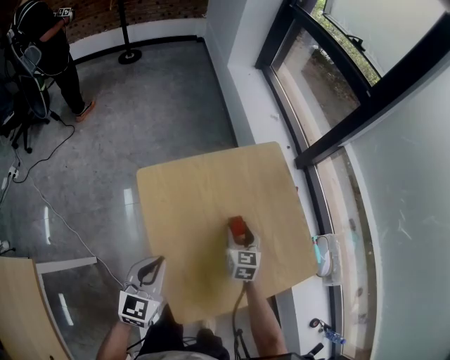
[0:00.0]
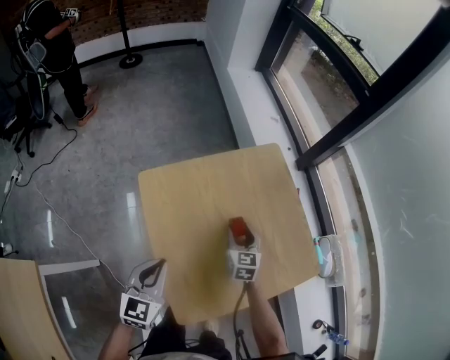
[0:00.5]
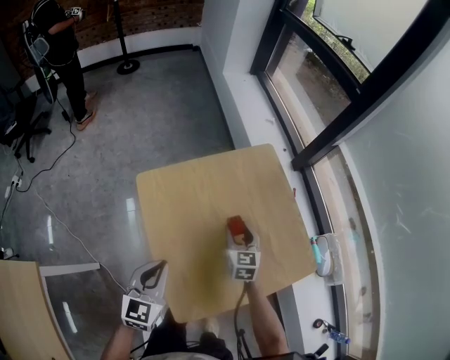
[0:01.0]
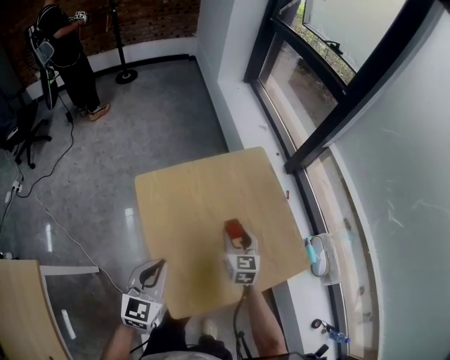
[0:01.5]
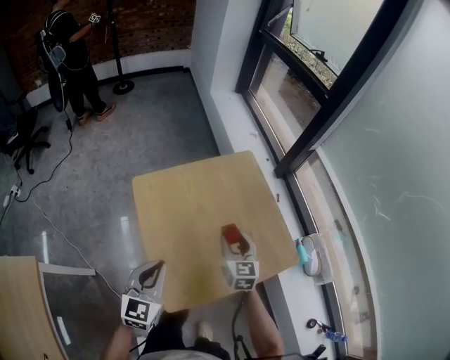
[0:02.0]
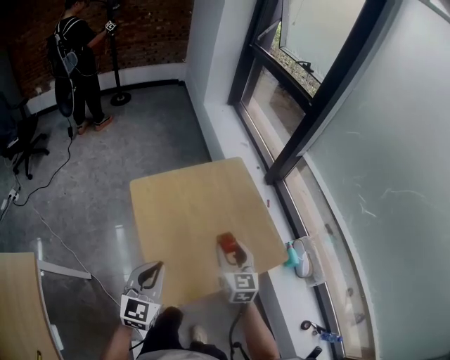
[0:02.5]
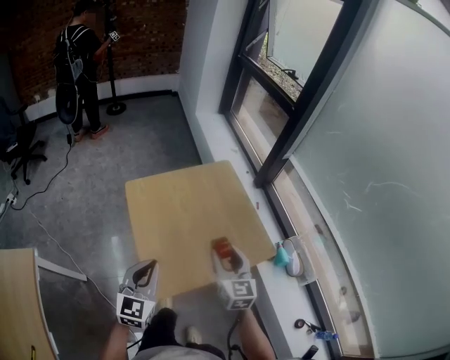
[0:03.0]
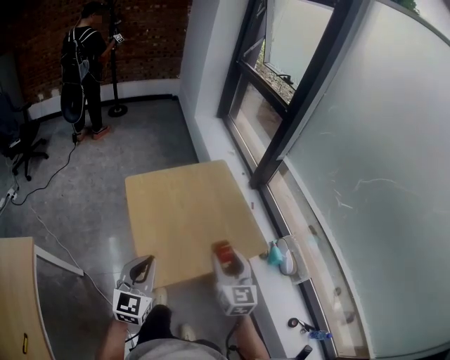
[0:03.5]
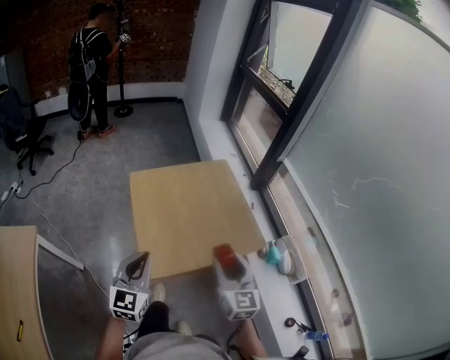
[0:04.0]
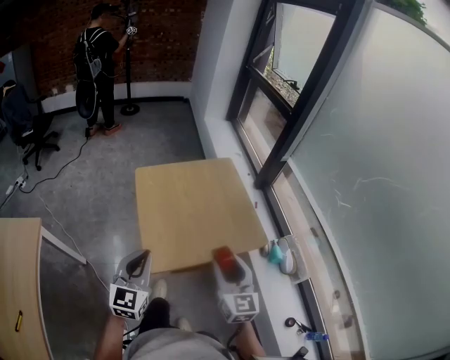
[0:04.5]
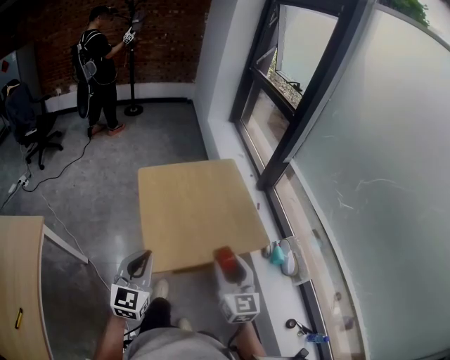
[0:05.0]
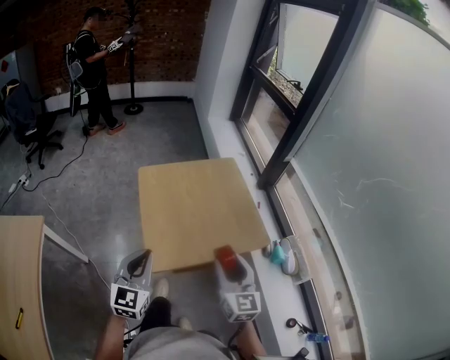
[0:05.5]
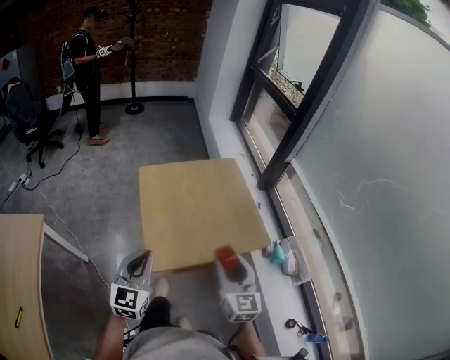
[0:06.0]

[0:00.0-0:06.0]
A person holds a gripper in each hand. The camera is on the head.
0:00.0 to 0:02.0: The right gripper goes about 15 cm upward and backward; the left gripper heads upward, backward and to the right, covering roughly 10 cm.
0:02.0 to 0:04.0: The left gripper shifts roughly 20 cm backward and upward. The right gripper shifts some 30 cm backward and upward.
0:04.0 to 0:06.0: The grippers stay close to where they were, moving slightly.

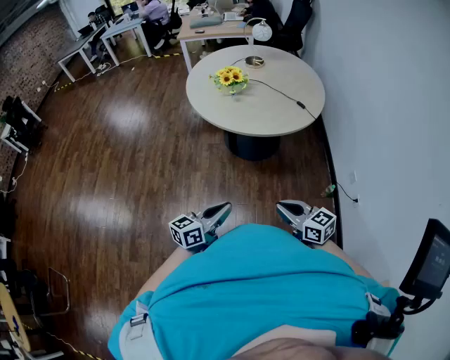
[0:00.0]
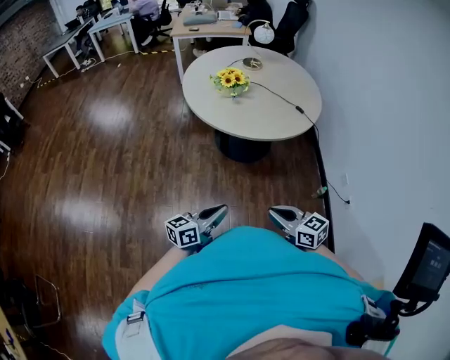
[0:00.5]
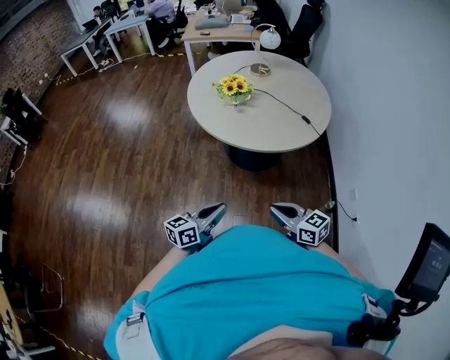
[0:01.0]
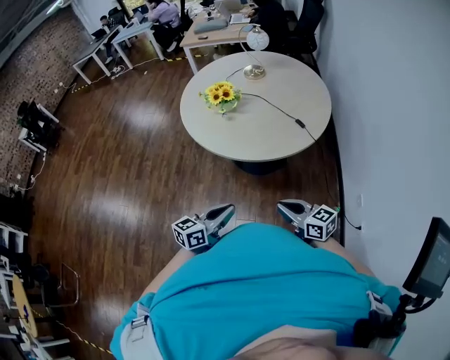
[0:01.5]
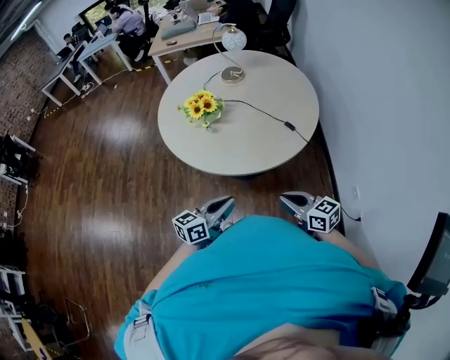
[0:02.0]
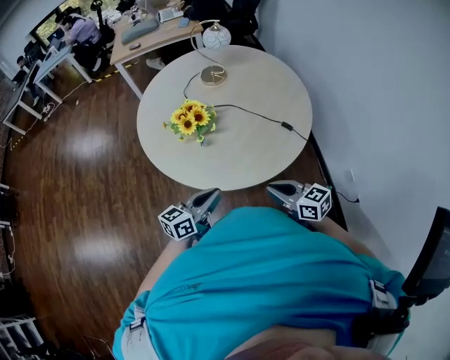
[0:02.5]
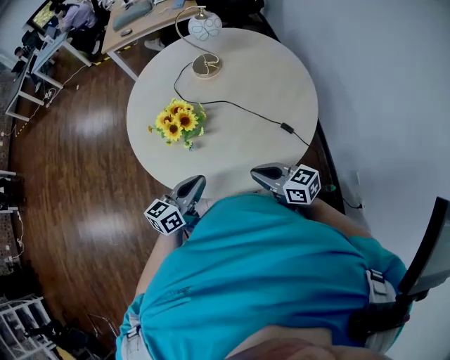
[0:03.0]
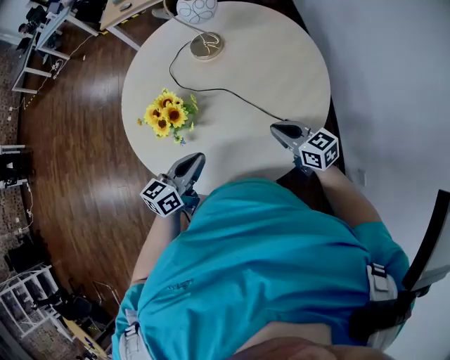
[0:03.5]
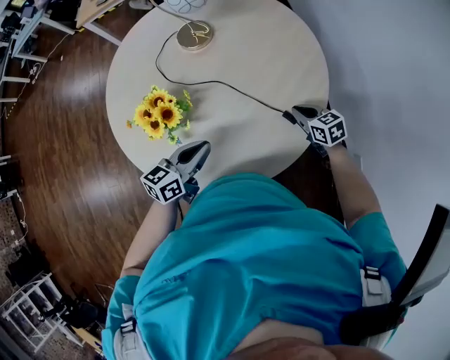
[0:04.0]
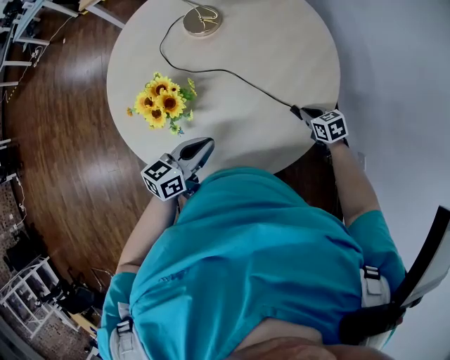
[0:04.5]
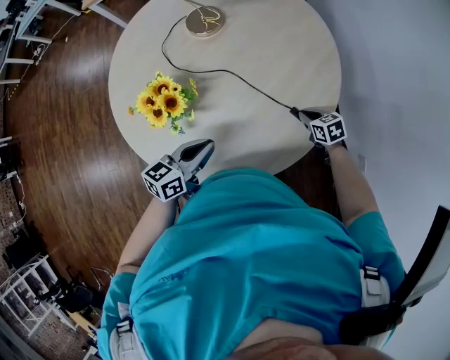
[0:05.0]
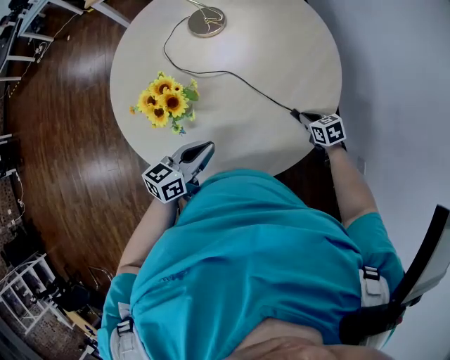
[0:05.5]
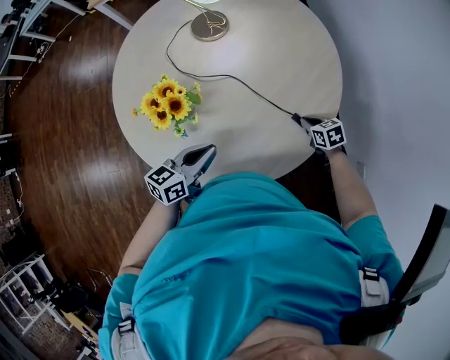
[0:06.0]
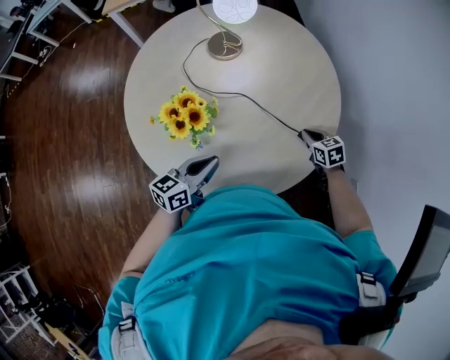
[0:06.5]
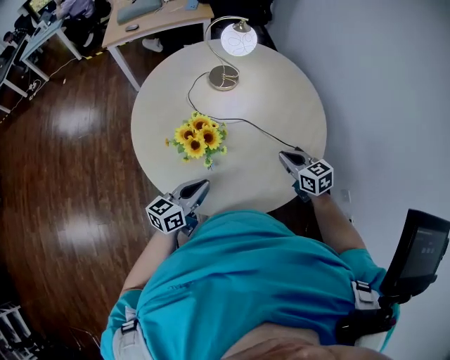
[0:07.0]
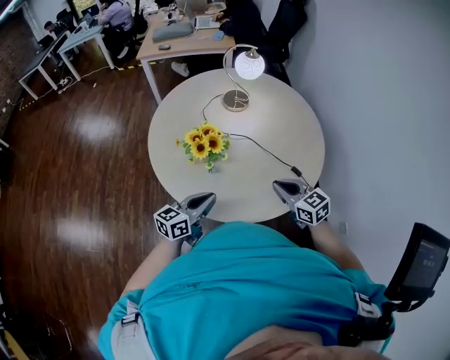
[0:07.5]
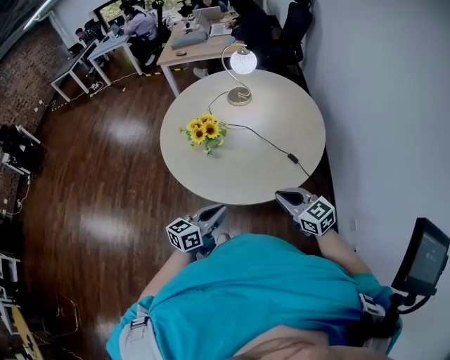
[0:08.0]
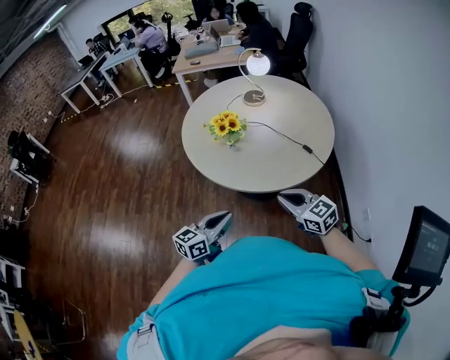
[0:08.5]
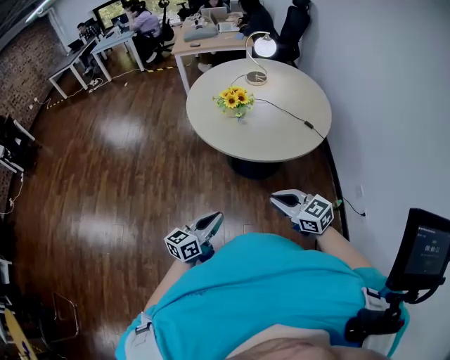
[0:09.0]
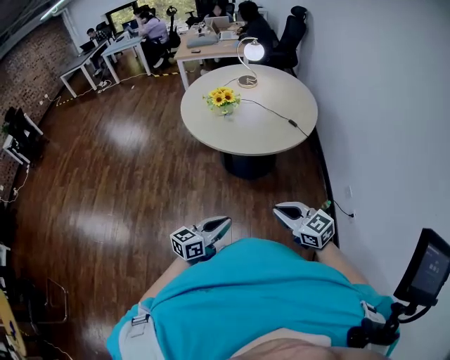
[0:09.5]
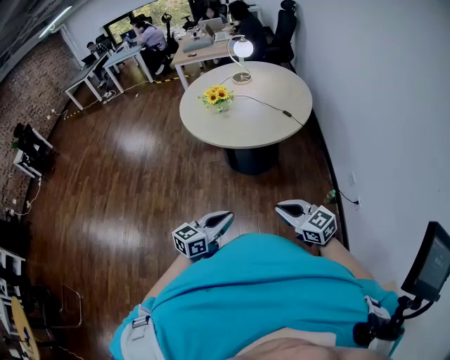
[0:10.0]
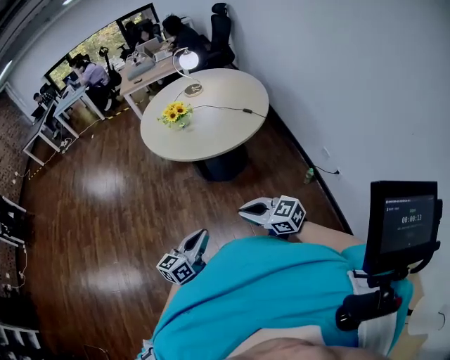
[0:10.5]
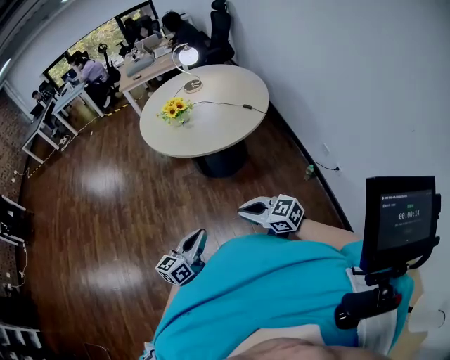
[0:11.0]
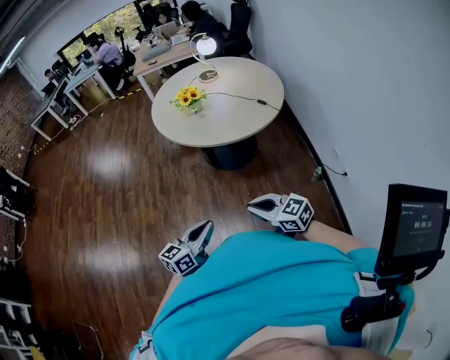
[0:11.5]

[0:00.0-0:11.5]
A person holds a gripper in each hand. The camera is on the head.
0:00.0 to 0:02.0: Both grippers move forward and to the right, approximately 30 cm.
0:02.0 to 0:04.0: The pair of grippers is taken forward, roughly 50 cm. The right gripper shifts roughly 25 cm downward, and turns by approximately 30 degrees.
0:04.0 to 0:06.0: The right gripper travels downward by some 5 cm.
0:06.0 to 0:07.5: The right gripper is displaced upward, backward and to the left by some 50 cm, and changes its angle by approximately 40 degrees, while the left gripper is displaced backward, upward and to the left by roughly 30 cm, and rotates some 20 degrees.
0:07.5 to 0:09.5: The two grippers travel together, backward, roughly 50 cm.
0:09.5 to 0:11.5: The right gripper is displaced to the left and backward by approximately 10 cm; the left gripper travels upward, backward and to the left by some 10 cm.

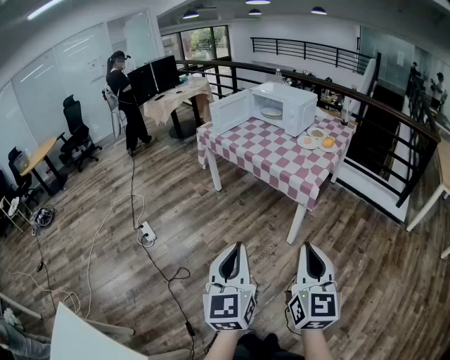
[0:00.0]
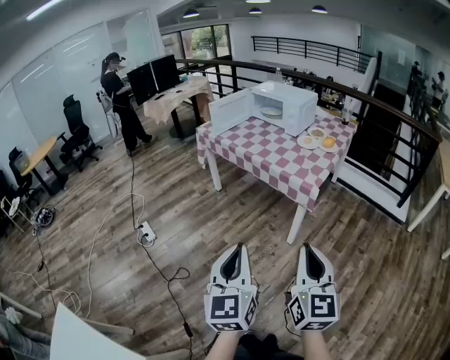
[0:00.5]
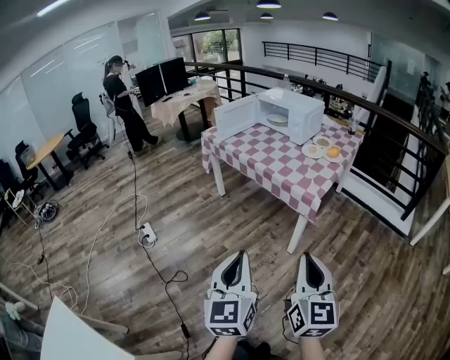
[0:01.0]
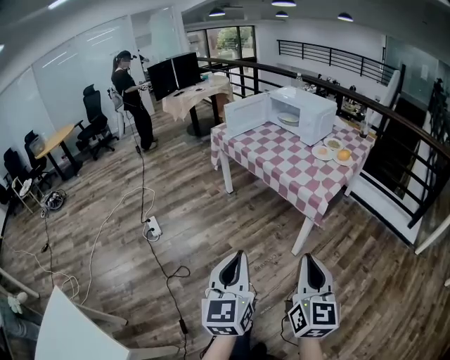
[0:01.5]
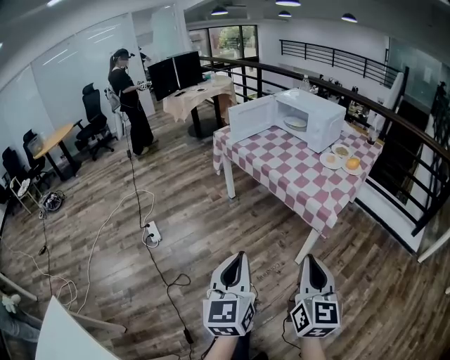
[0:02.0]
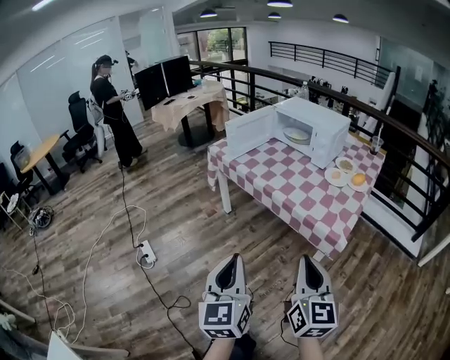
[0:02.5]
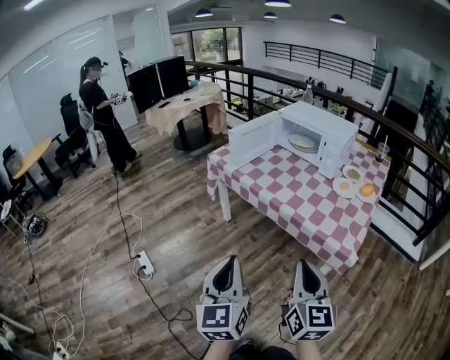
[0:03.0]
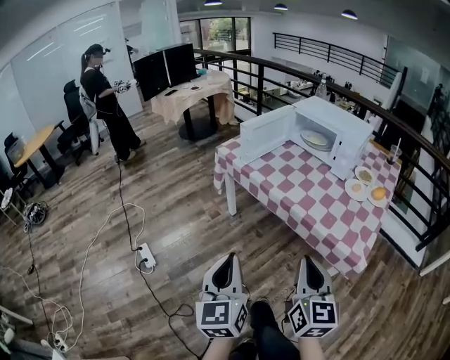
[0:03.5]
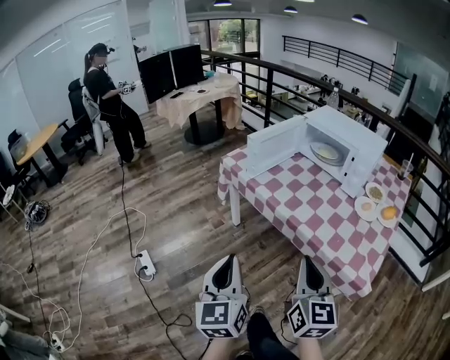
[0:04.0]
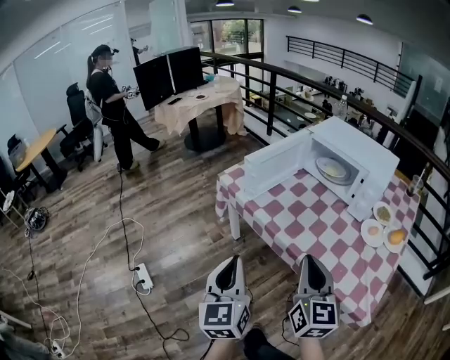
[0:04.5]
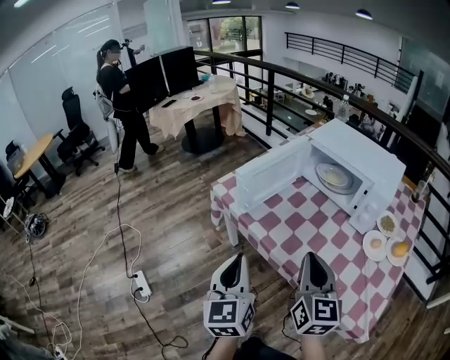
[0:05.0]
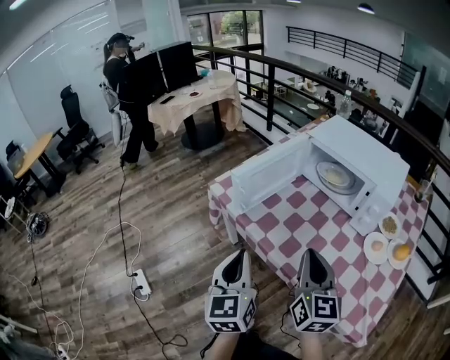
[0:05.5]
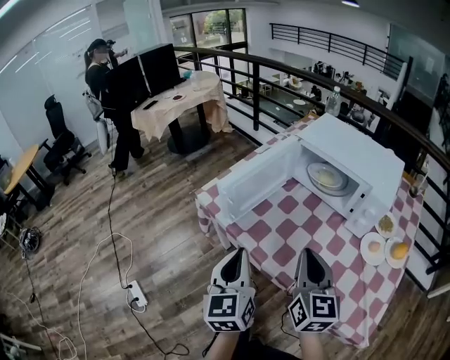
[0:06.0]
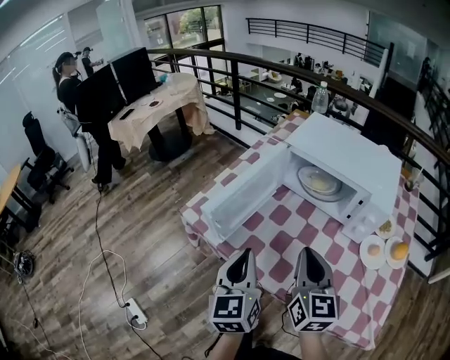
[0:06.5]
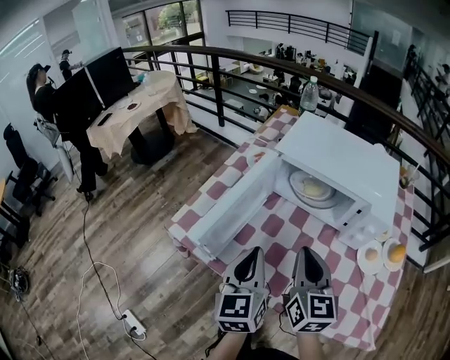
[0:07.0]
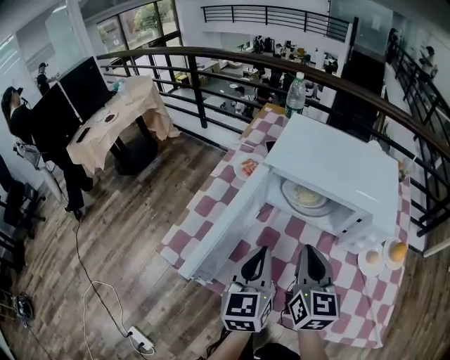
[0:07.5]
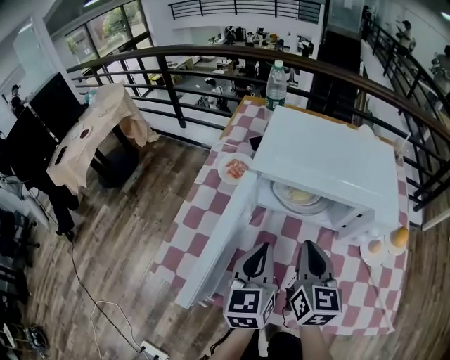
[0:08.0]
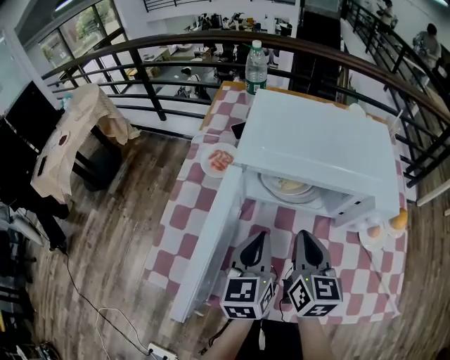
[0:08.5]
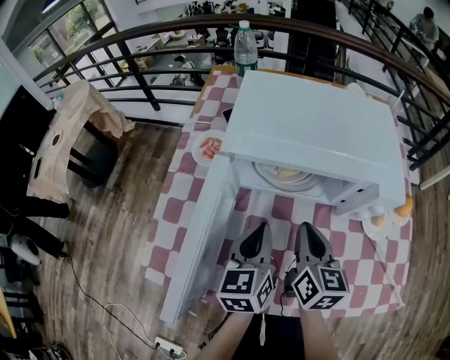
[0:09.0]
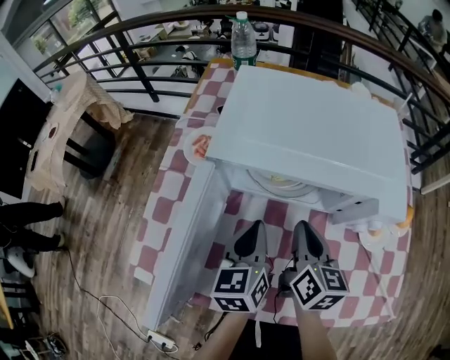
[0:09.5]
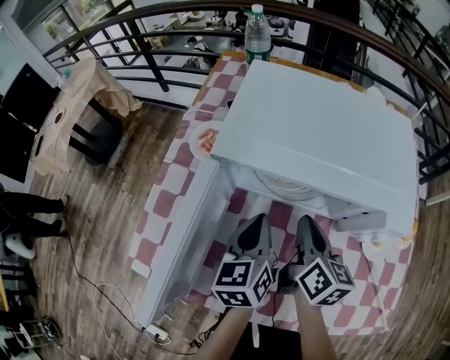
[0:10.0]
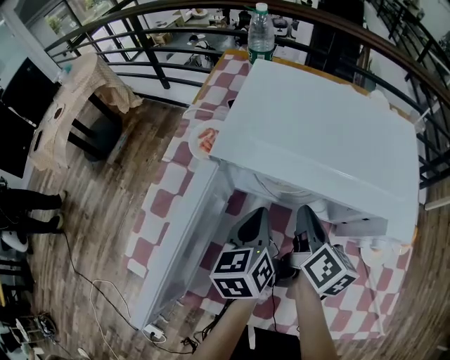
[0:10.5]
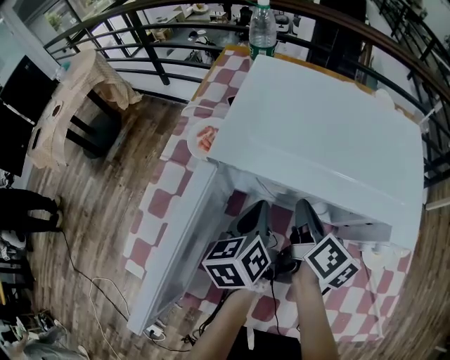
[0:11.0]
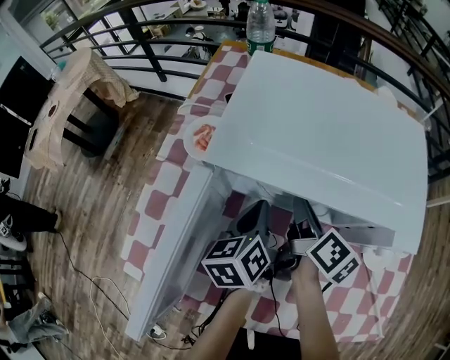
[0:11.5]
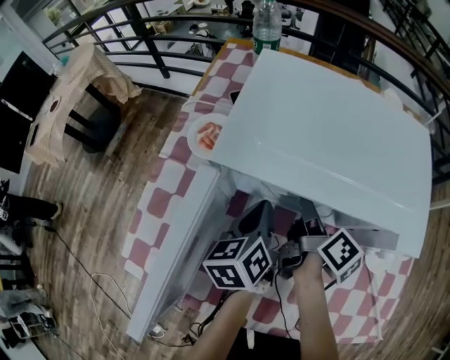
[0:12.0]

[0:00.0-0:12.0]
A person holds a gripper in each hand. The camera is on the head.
0:00.0 to 0:02.0: Both grippers move forward, approximately 10 cm.
0:02.0 to 0:04.0: Both grippers travel together forward and to the left, about 40 cm.
0:04.0 to 0:06.0: Both grippers travel together forward, roughly 30 cm.
0:06.0 to 0:08.0: The left gripper changes place by some 30 cm, and swivels roughly 40 degrees; the right gripper ends up about 25 cm from where it was, and rotates approximately 30 degrees.
0:08.0 to 0:10.0: The two grippers go about 10 cm forward and downward. The right gripper rotates roughly 30 degrees.
0:10.0 to 0:12.0: The grippers both shift forward by some 5 cm. The right gripper swivels some 30 degrees, and opens its fingers.
